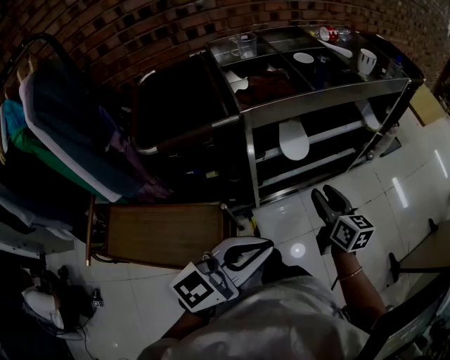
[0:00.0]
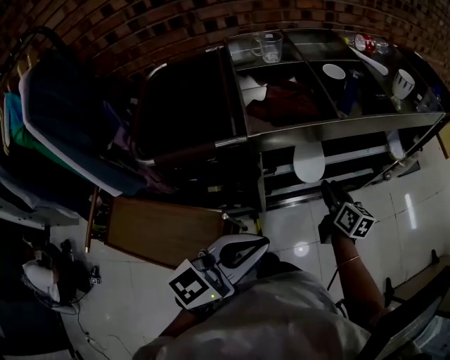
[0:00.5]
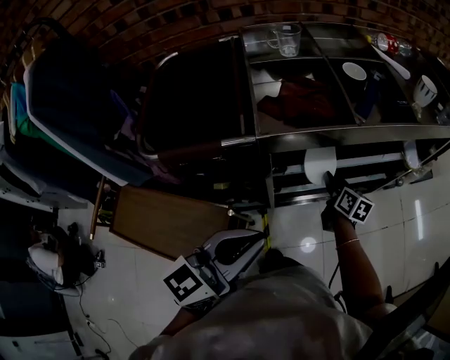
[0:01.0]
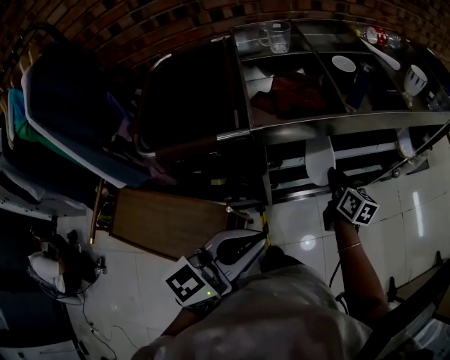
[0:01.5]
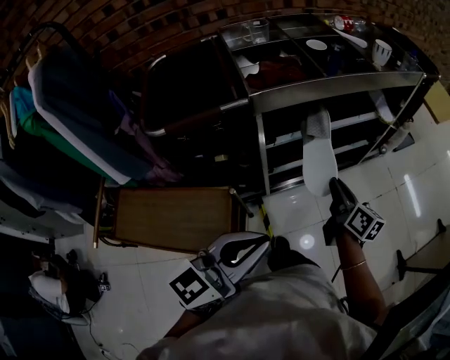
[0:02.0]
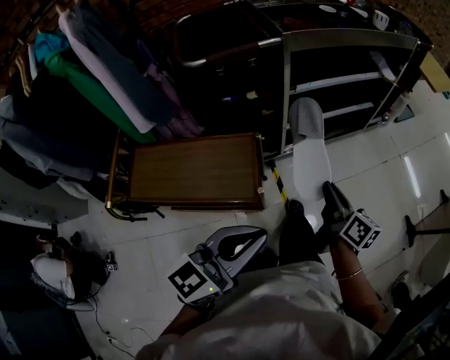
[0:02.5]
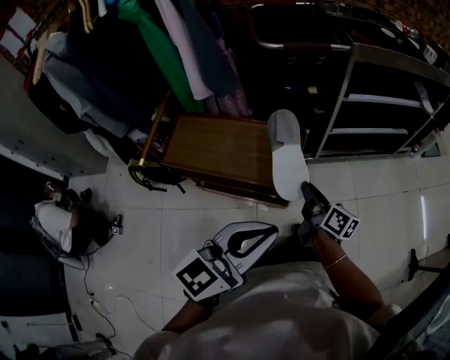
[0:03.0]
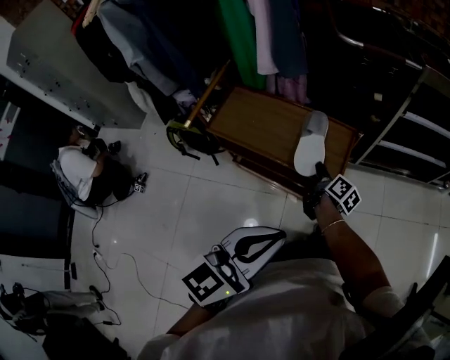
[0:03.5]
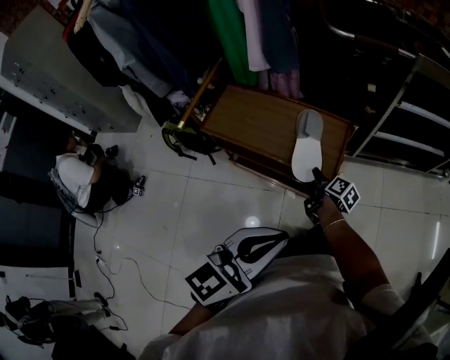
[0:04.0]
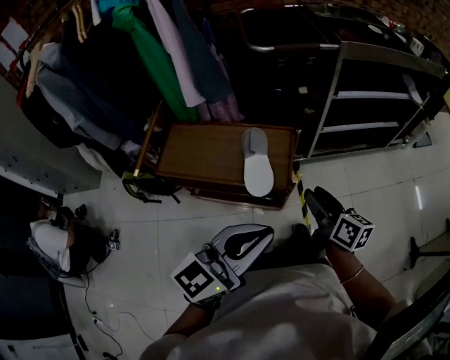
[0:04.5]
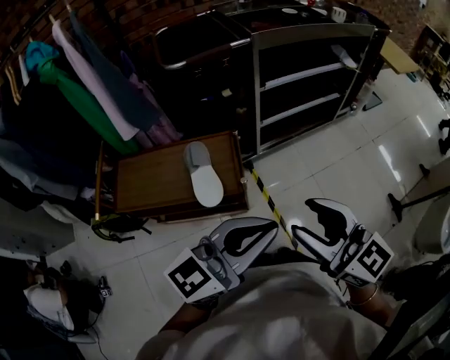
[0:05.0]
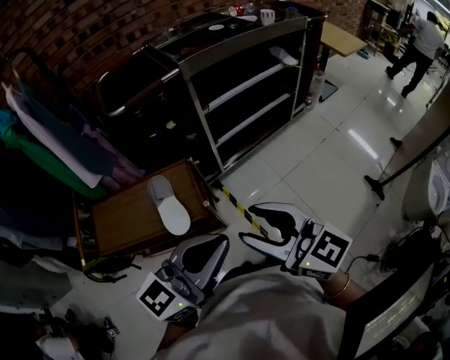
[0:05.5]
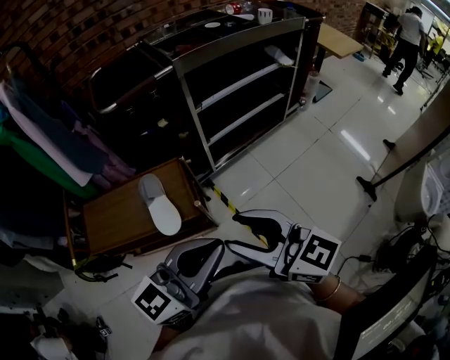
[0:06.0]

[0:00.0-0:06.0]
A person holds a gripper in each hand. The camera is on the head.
0.0 to 2.0 s: The right gripper travels forward and back again, some 20 cm each way, and closes up; the left gripper moves some 15 cm forward and comes back.
2.0 to 4.0 s: The left gripper moves backward and to the left, approximately 40 cm, and changes its angle by some 20 degrees. The right gripper goes approximately 50 cm to the left, backward and downward, changes its angle by roughly 40 degrees, and opens its fingers.
4.0 to 6.0 s: The left gripper moves to the right and upward, roughly 20 cm, and changes its angle by about 40 degrees, while the right gripper travels upward and to the right by approximately 50 cm, and rolls counterclockwise, seen from behind, by about 60 degrees.

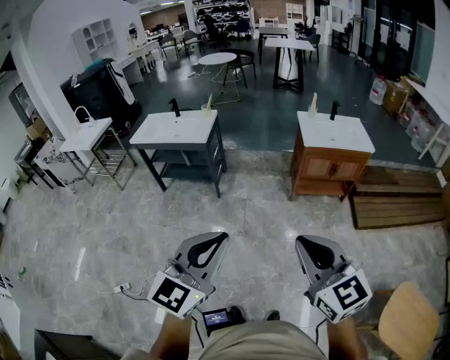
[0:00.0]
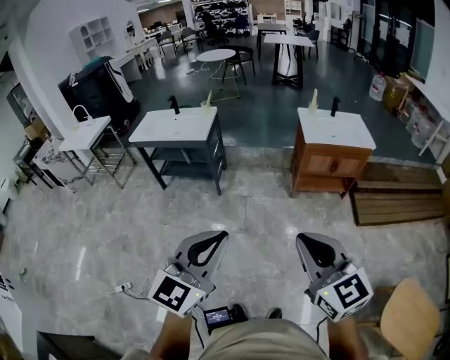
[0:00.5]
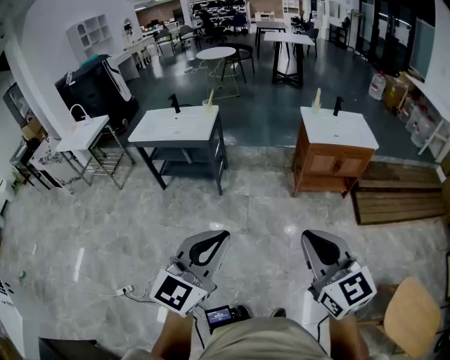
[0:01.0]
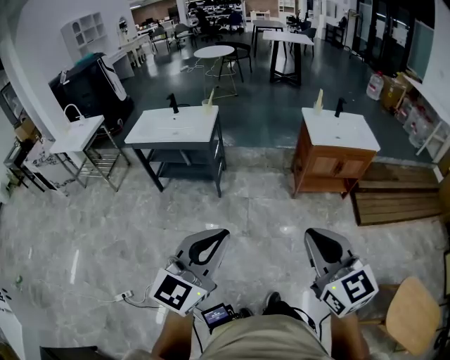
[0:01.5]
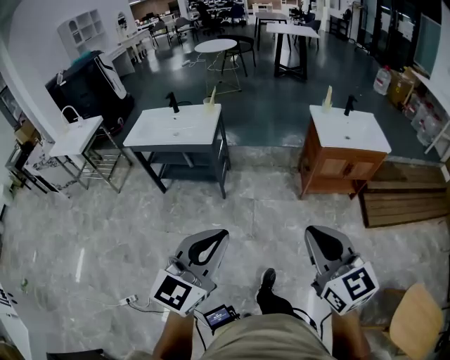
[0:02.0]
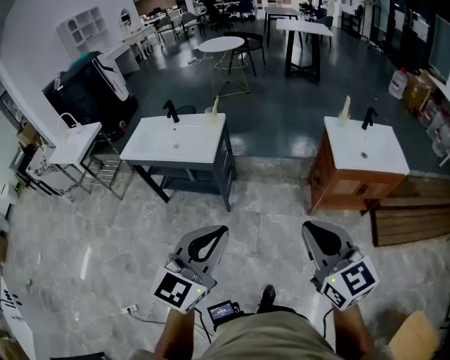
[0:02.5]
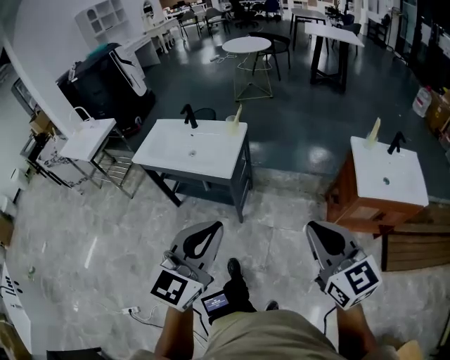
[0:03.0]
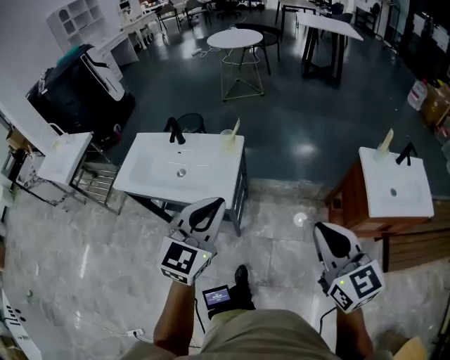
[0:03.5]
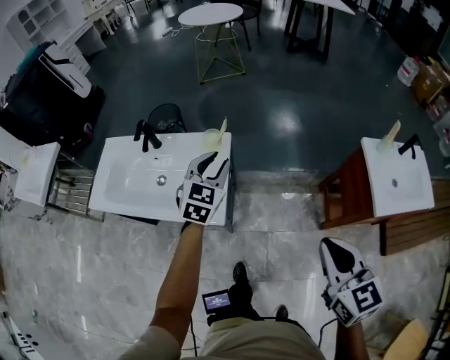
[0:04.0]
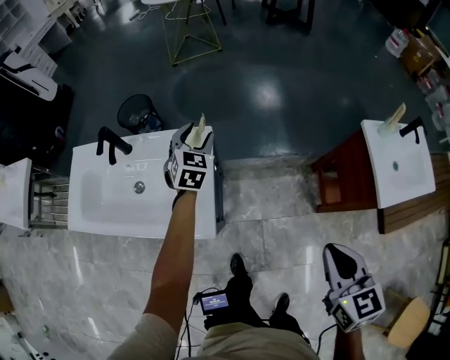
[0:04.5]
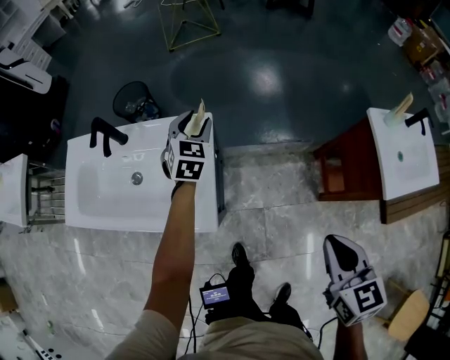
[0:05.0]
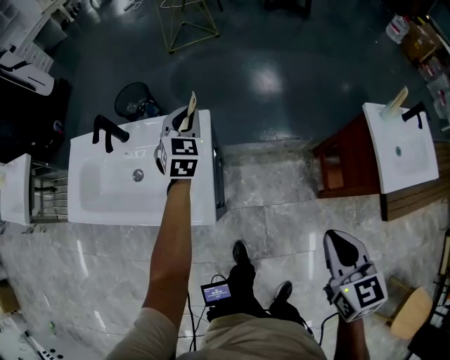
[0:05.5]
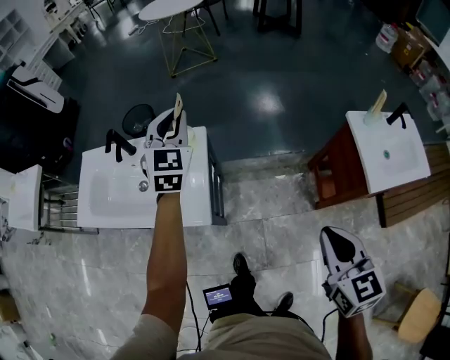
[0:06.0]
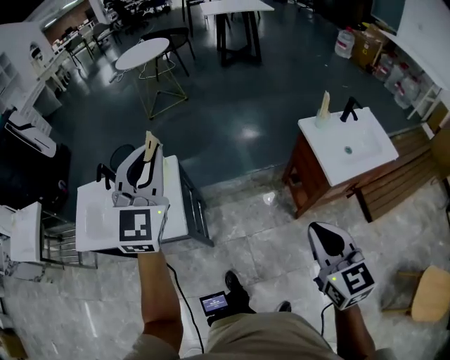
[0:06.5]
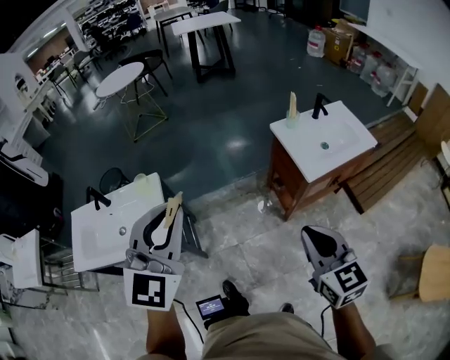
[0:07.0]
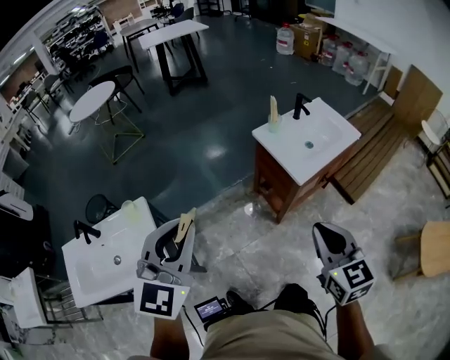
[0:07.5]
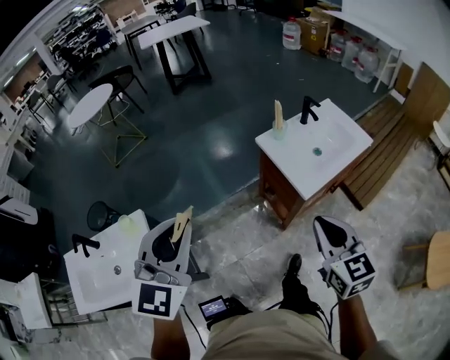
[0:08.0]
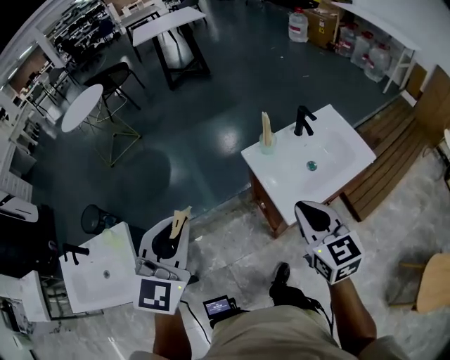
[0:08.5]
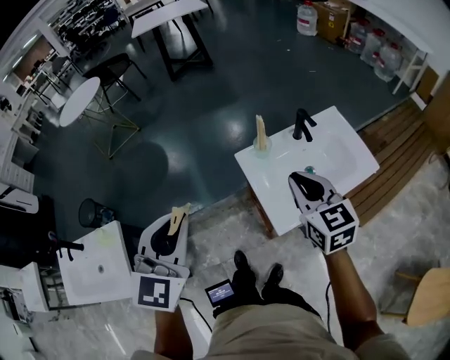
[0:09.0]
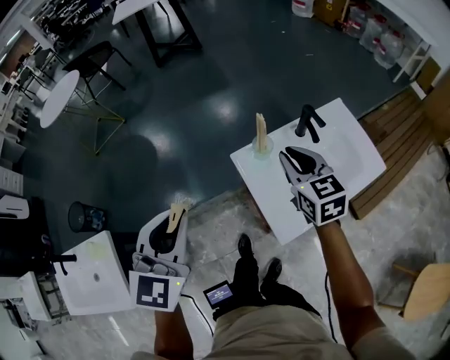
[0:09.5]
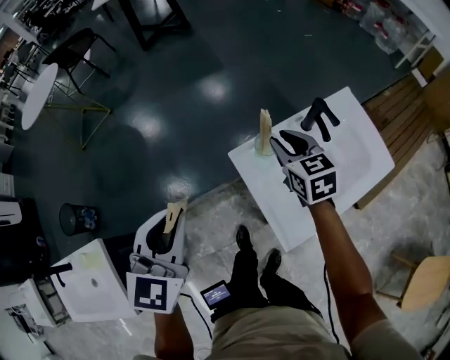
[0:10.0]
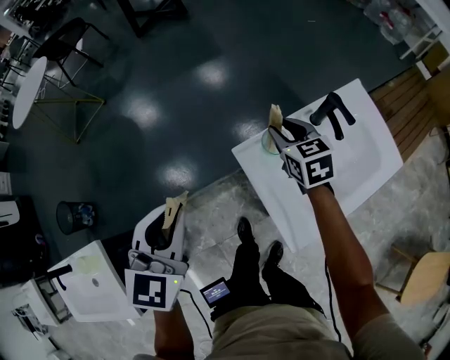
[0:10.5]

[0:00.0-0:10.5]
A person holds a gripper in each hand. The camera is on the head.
0.0 to 2.0 s: Both grippers travel together forward and to the left, about 20 cm.
2.0 to 4.0 s: The pair of grippers is taken forward, approximately 80 cm. The left gripper turns by some 20 degrees, and opens.
4.0 to 6.5 s: The right gripper is displaced to the right, backward and upward by some 15 cm; the left gripper heads upward, covering about 25 cm, swivels some 30 degrees, and opens and closes again.
6.5 to 8.5 s: The left gripper shifts some 40 cm to the right and forward, and swivels about 20 degrees; the right gripper moves forward and to the right, approximately 40 cm.
8.5 to 10.5 s: Both grippers travel together forward and downward, about 40 cm. The right gripper opens.

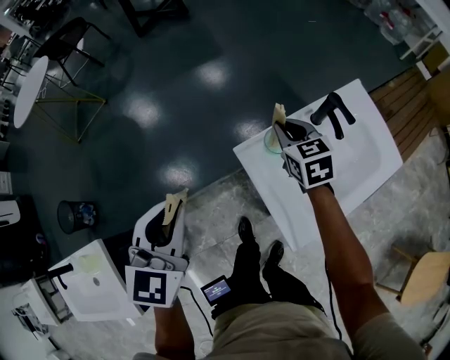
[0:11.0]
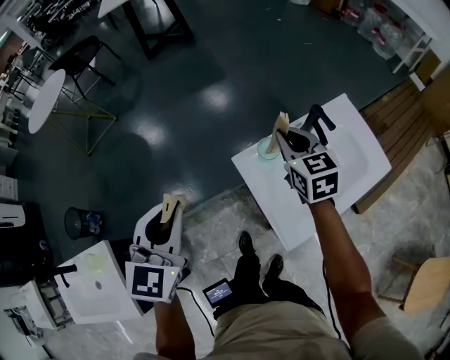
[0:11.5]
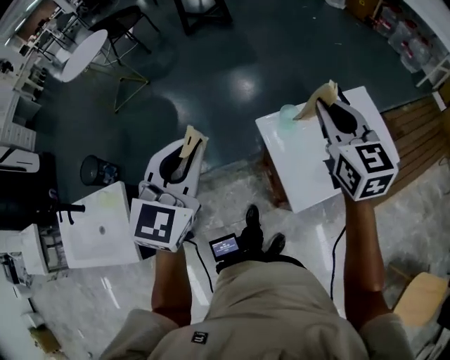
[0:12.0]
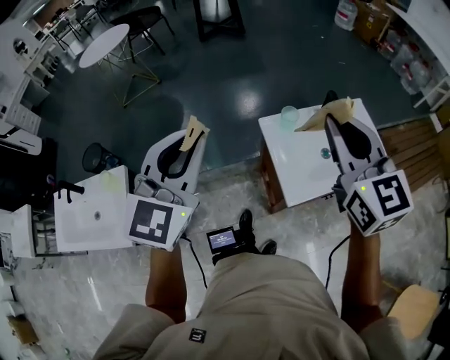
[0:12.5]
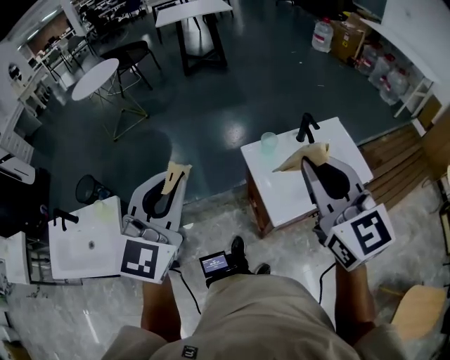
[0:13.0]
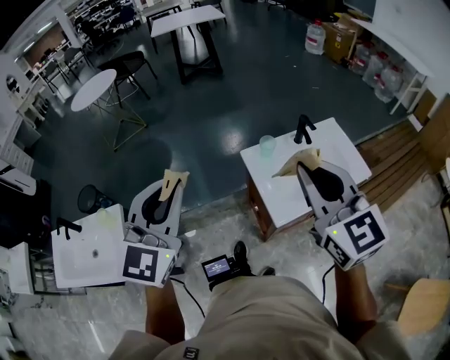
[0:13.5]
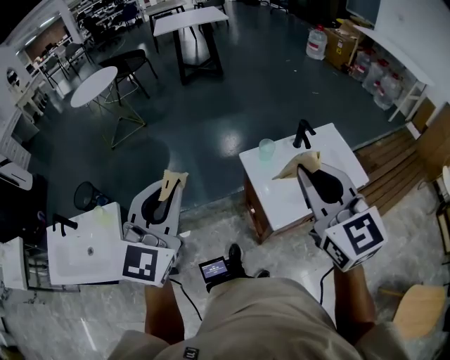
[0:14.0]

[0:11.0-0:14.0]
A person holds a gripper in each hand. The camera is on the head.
11.0 to 12.5 s: The left gripper goes about 30 cm backward and upward, and turns by approximately 20 degrees; the right gripper shifts about 50 cm upward and backward, and tips its fingers upward by approximately 30 degrees.
12.5 to 14.0 s: The two grippers go some 5 cm backward.

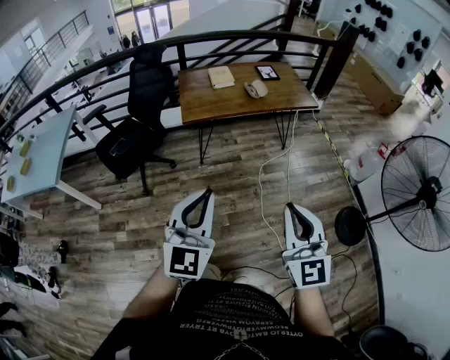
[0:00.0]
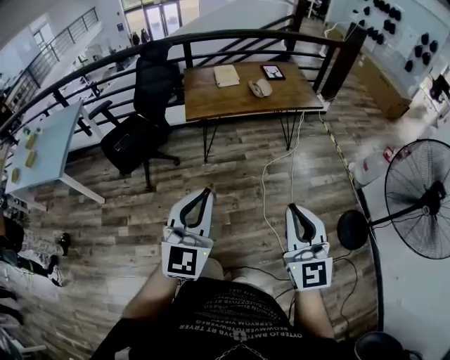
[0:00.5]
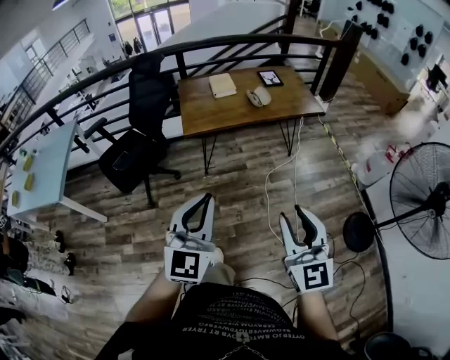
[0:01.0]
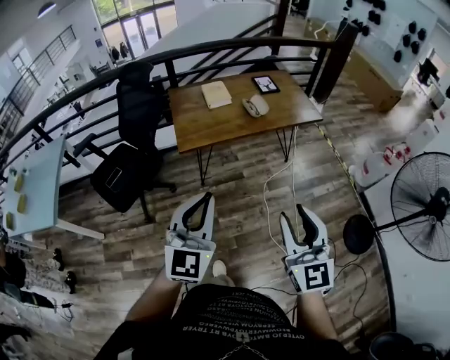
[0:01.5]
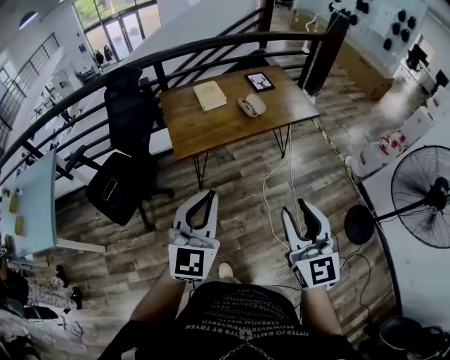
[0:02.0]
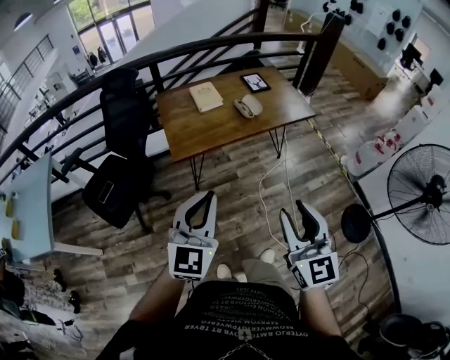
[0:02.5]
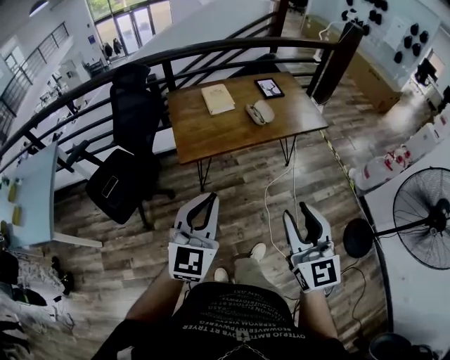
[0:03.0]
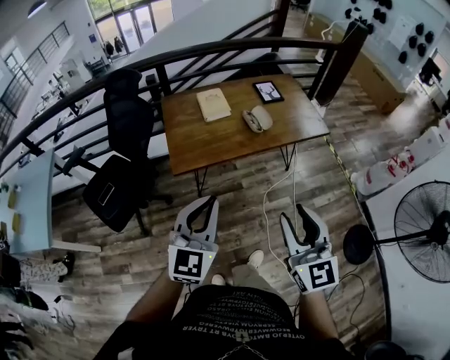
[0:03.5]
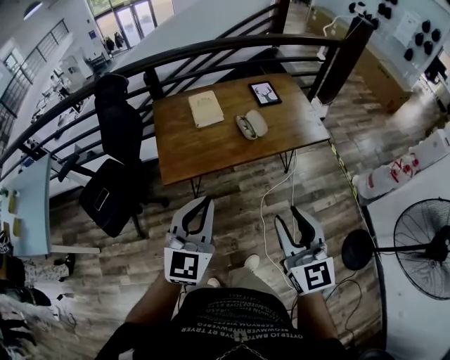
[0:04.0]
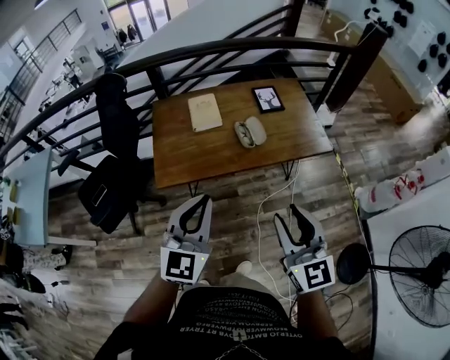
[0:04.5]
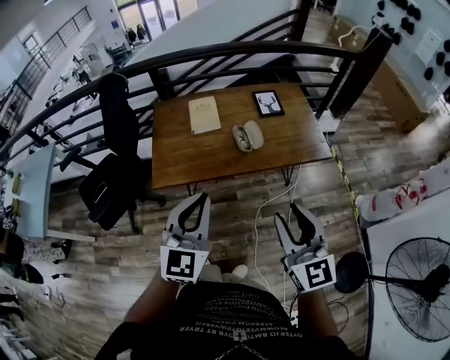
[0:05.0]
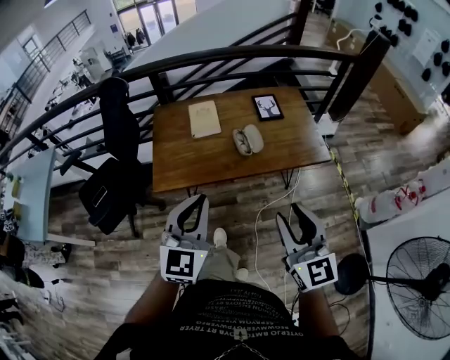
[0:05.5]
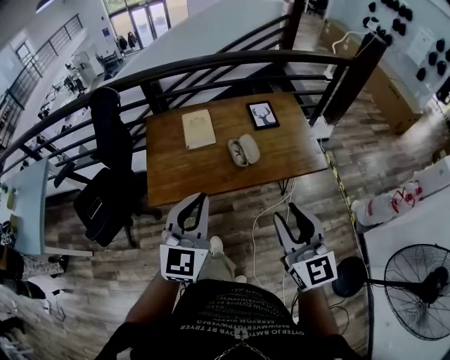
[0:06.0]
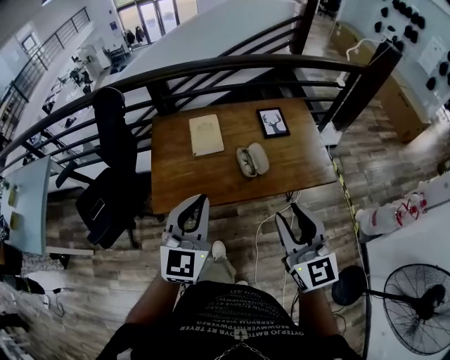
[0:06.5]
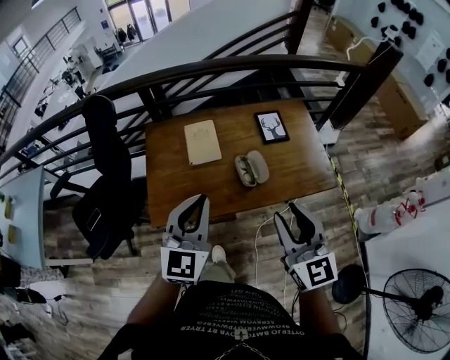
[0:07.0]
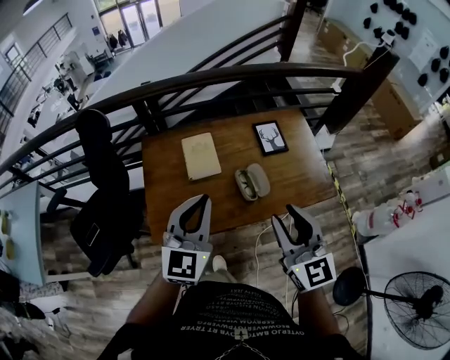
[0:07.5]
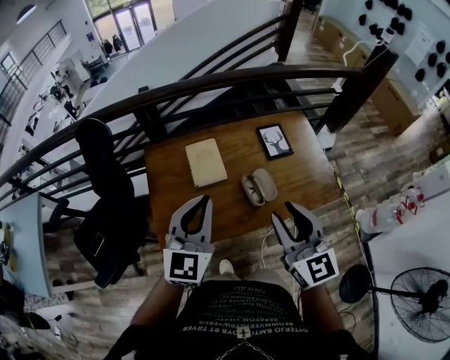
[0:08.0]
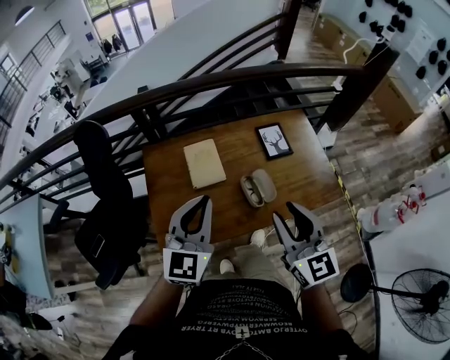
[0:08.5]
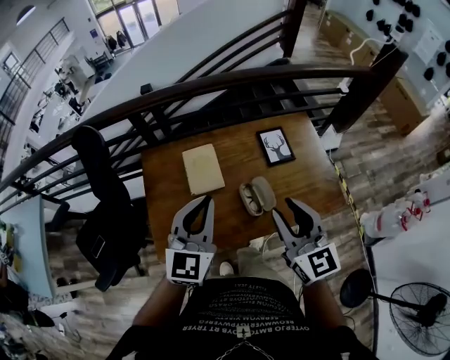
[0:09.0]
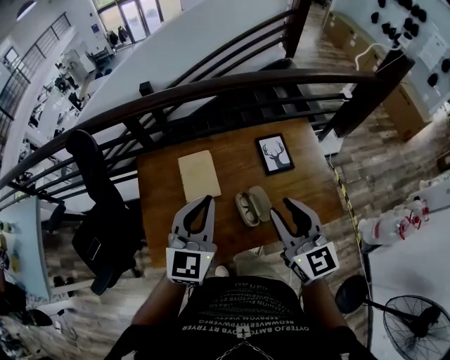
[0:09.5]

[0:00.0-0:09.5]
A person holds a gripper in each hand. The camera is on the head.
0.0 to 2.0 s: Both grippers move forward, roughly 25 cm. The right gripper opens its fingers.
2.0 to 4.0 s: The two grippers go some 20 cm forward.
4.0 to 5.5 s: Both grippers travel together to the right and forward, roughly 10 cm.
5.5 to 7.5 s: Both grippers move forward, roughly 25 cm.
7.5 to 9.5 s: The two grippers go about 15 cm forward.
